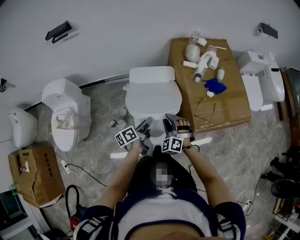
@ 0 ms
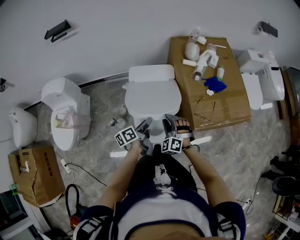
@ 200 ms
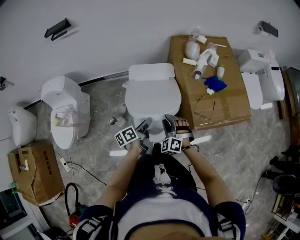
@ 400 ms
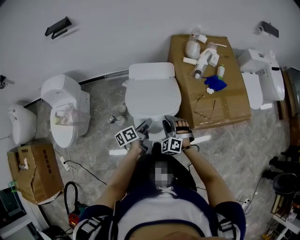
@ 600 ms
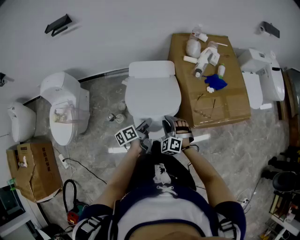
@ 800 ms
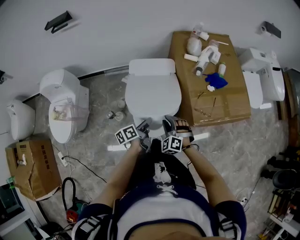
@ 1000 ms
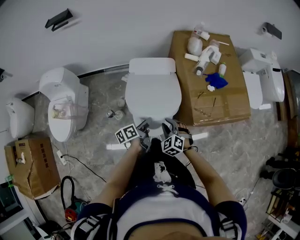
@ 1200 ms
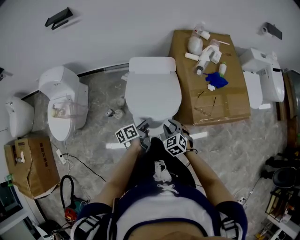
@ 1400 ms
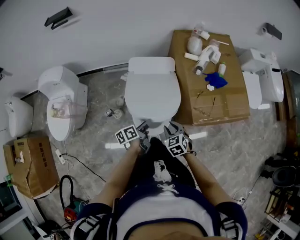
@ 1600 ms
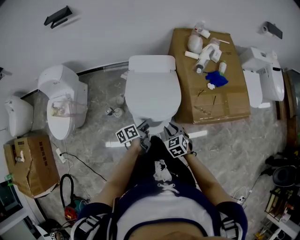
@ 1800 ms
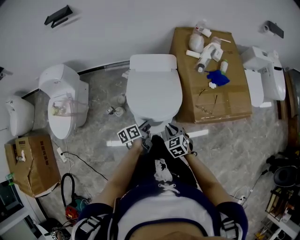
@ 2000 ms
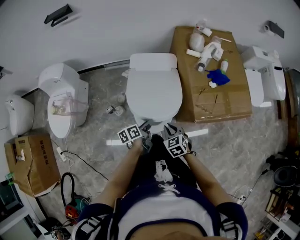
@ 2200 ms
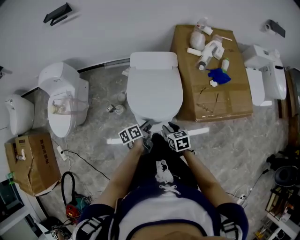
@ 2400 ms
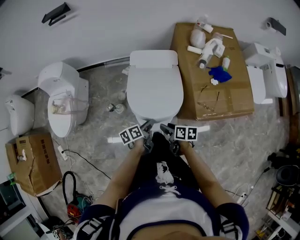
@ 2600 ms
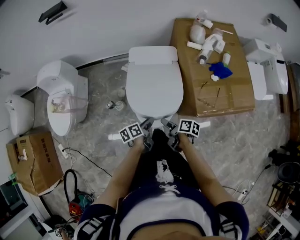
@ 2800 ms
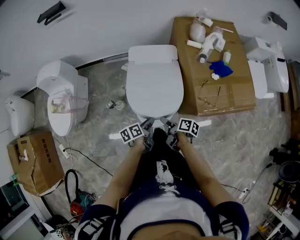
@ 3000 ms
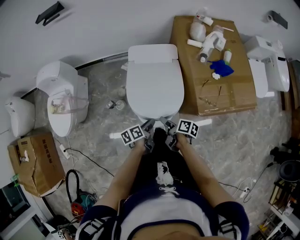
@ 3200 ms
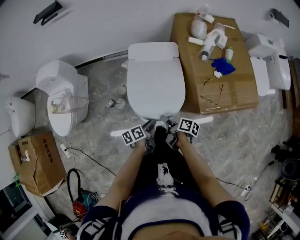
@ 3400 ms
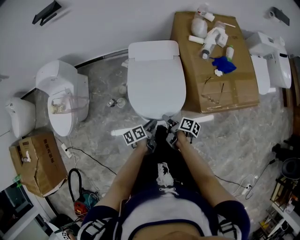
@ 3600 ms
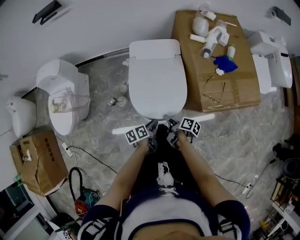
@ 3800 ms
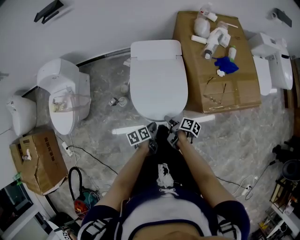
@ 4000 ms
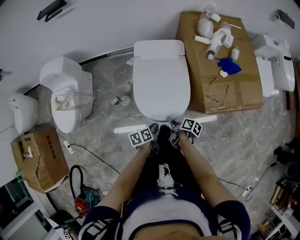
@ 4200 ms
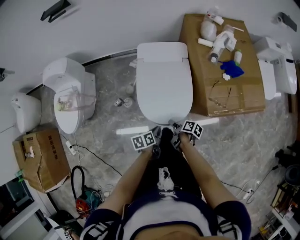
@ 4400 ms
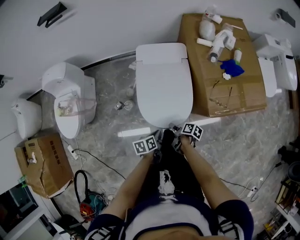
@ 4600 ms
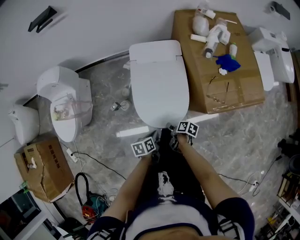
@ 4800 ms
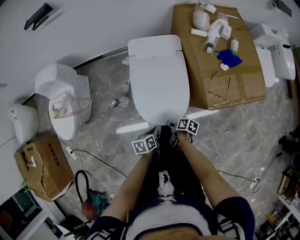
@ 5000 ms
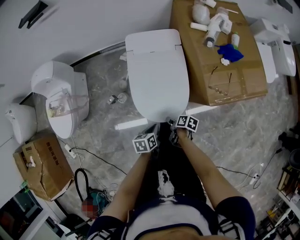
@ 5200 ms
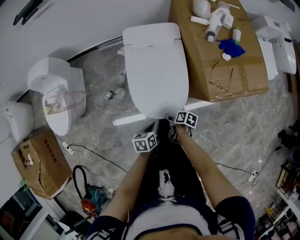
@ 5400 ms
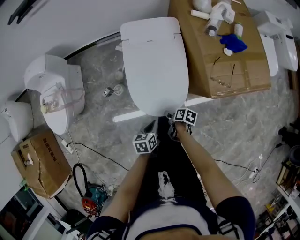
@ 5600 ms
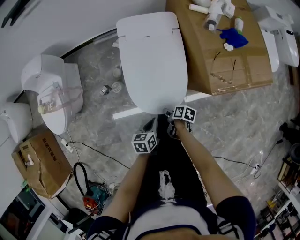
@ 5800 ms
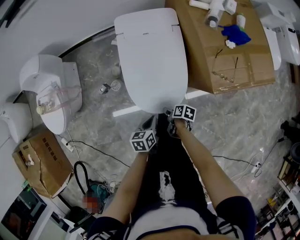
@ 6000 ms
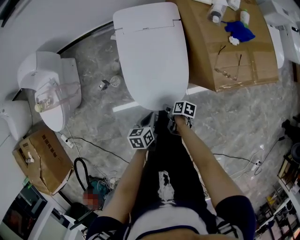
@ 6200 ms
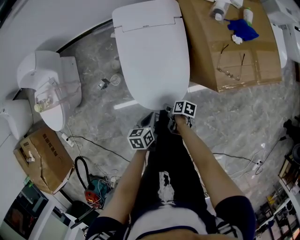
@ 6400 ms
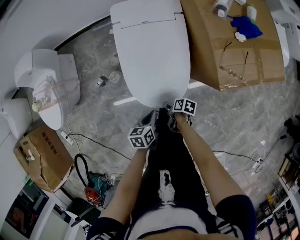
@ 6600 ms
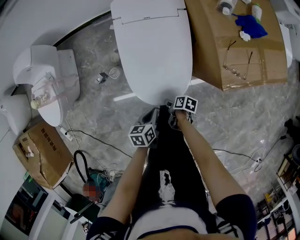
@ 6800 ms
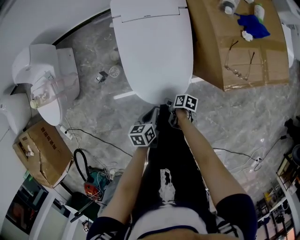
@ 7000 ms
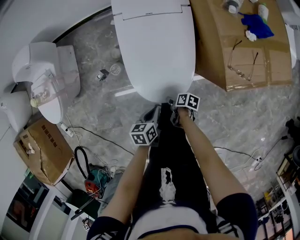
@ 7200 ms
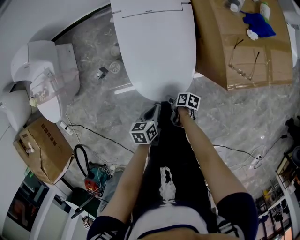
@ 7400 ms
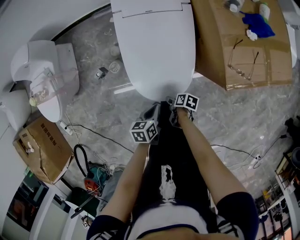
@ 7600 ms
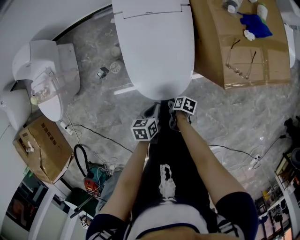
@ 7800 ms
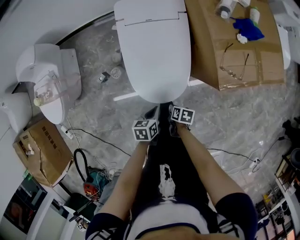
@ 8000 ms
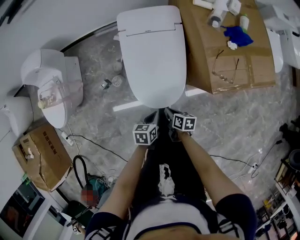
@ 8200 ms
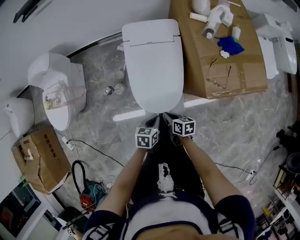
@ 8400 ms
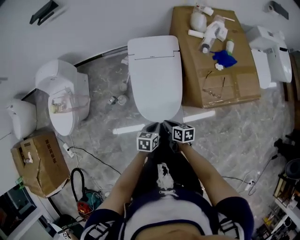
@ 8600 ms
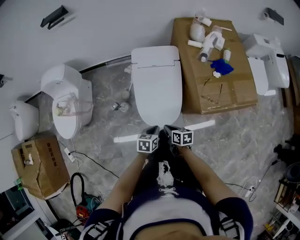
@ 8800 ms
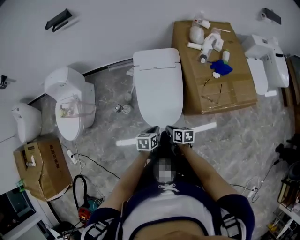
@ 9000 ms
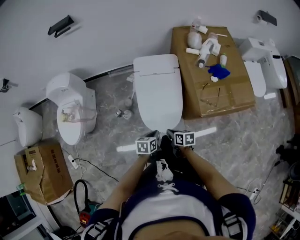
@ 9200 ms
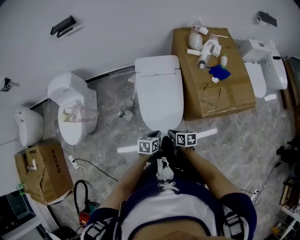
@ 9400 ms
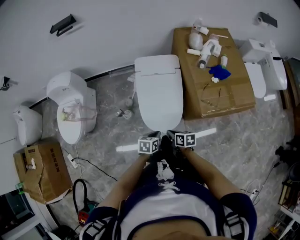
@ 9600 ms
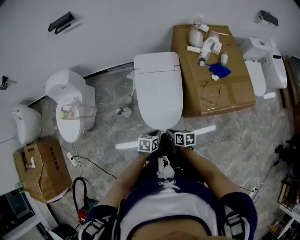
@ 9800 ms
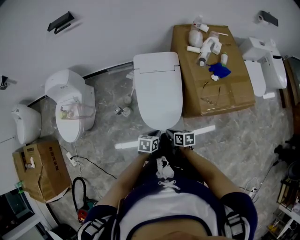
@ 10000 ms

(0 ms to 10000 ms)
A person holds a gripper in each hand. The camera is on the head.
0 ms - 1400 ms: The right gripper shifts some 5 cm backward, and swivels some 30 degrees, while the left gripper travels downward and backward by about 10 cm.
1400 ms - 2800 ms: The right gripper changes place by some 5 cm, twists about 90 degrees clockwise, seen from behind, and opens. Meanwhile the left gripper ends up approximately 5 cm from where it was.
2800 ms - 4200 ms: The right gripper heads downward, covering approximately 5 cm; the left gripper shifts by about 5 cm, and closes.
4200 ms - 5800 ms: The left gripper is displaced downward by some 5 cm, and rotates roughly 20 degrees; the right gripper travels downward by approximately 15 cm.
5800 ms - 7200 ms: The left gripper is displaced downward by some 5 cm; the right gripper travels downward by some 10 cm.
7200 ms - 8600 ms: The right gripper heads upward, covering some 25 cm, rotates some 40 degrees, and closes. The left gripper travels upward by some 15 cm.
8600 ms - 10000 ms: The grippers stay close to where they were, moving slightly.

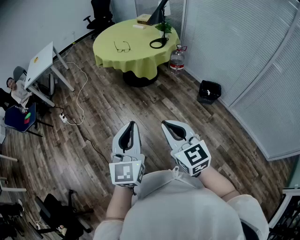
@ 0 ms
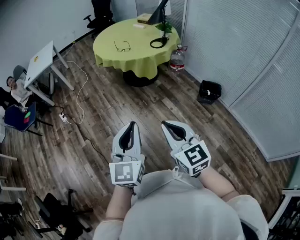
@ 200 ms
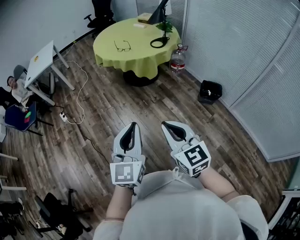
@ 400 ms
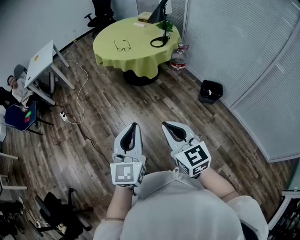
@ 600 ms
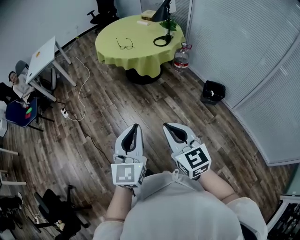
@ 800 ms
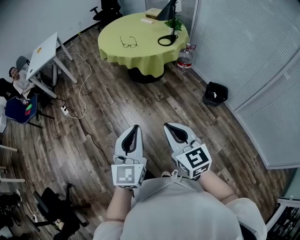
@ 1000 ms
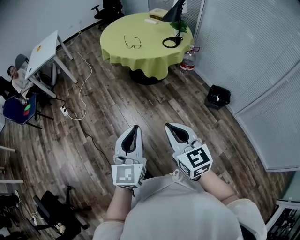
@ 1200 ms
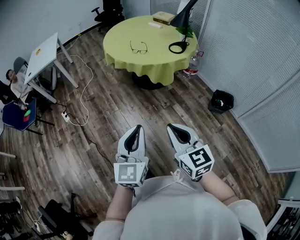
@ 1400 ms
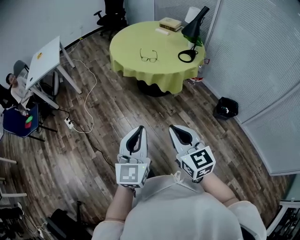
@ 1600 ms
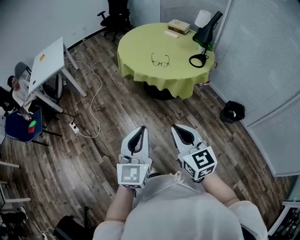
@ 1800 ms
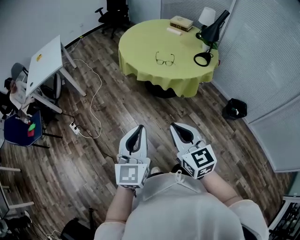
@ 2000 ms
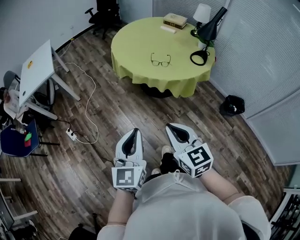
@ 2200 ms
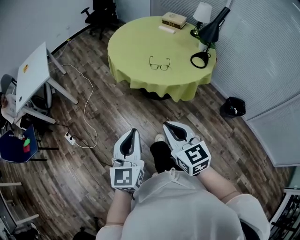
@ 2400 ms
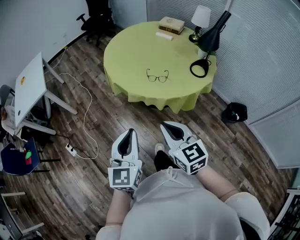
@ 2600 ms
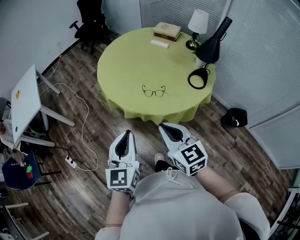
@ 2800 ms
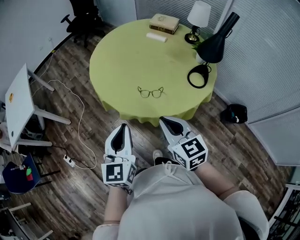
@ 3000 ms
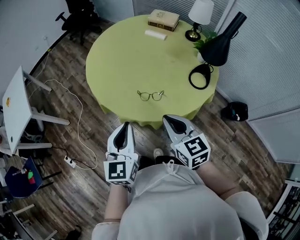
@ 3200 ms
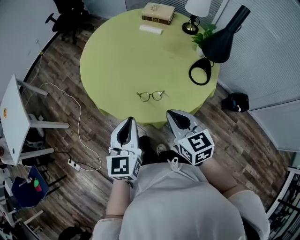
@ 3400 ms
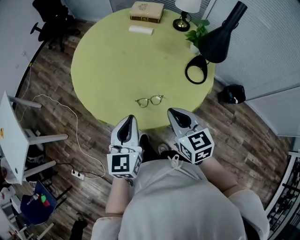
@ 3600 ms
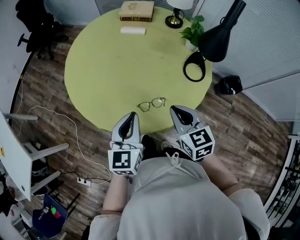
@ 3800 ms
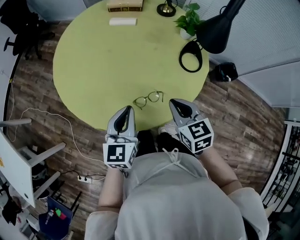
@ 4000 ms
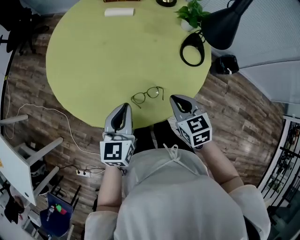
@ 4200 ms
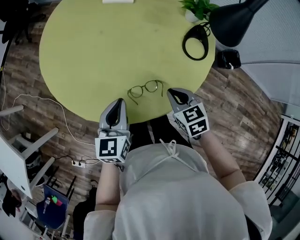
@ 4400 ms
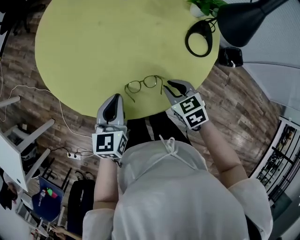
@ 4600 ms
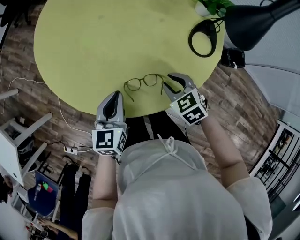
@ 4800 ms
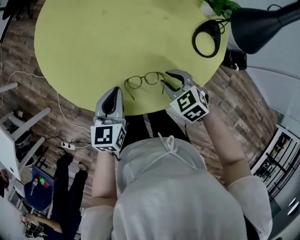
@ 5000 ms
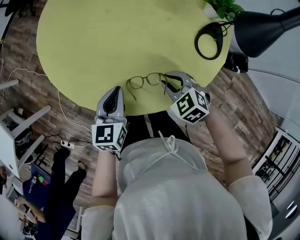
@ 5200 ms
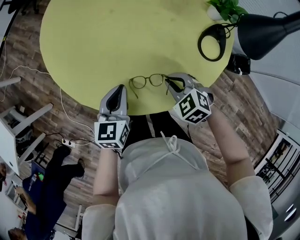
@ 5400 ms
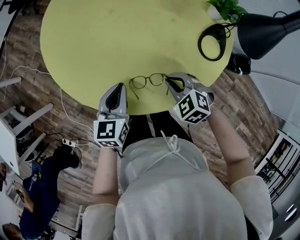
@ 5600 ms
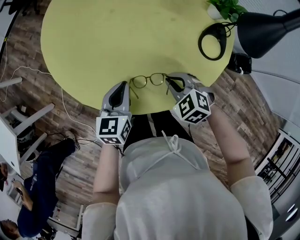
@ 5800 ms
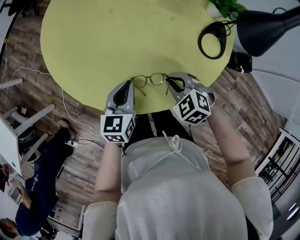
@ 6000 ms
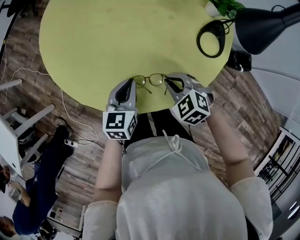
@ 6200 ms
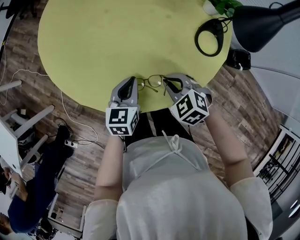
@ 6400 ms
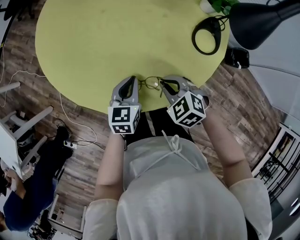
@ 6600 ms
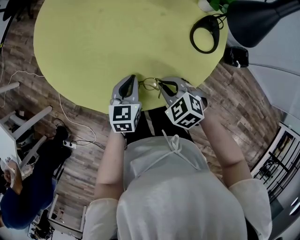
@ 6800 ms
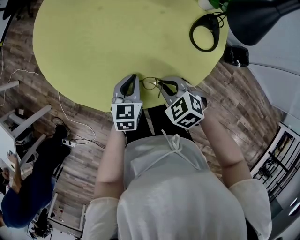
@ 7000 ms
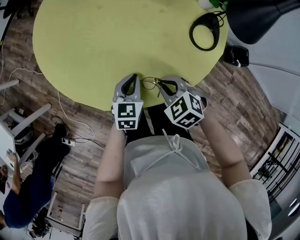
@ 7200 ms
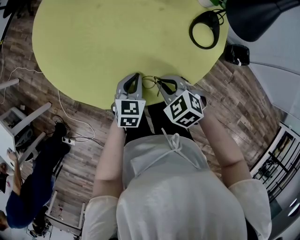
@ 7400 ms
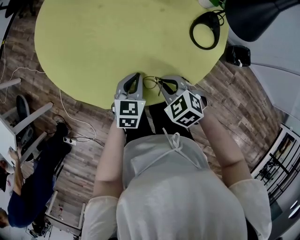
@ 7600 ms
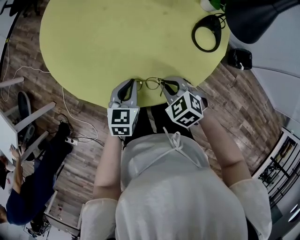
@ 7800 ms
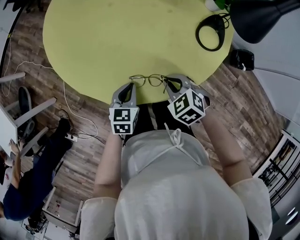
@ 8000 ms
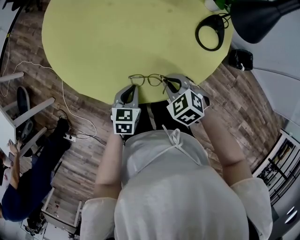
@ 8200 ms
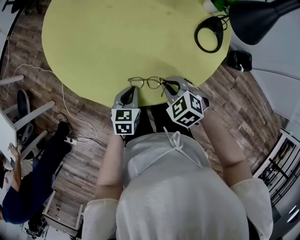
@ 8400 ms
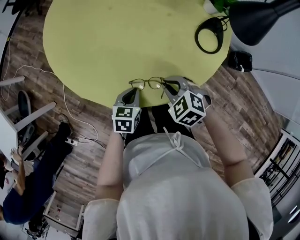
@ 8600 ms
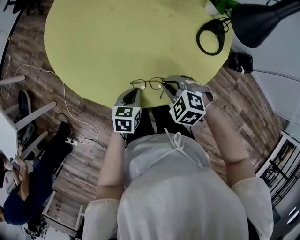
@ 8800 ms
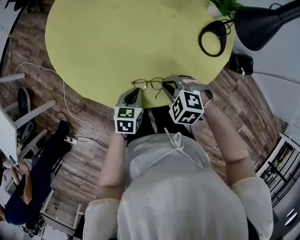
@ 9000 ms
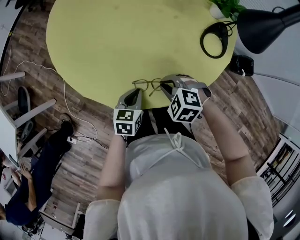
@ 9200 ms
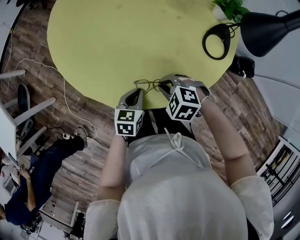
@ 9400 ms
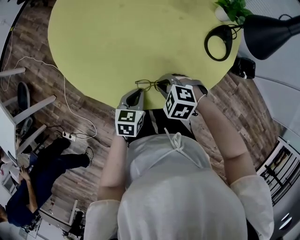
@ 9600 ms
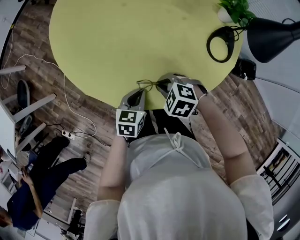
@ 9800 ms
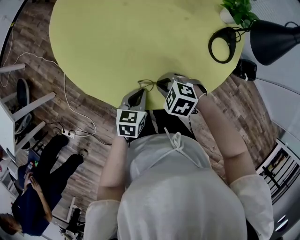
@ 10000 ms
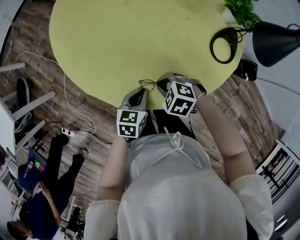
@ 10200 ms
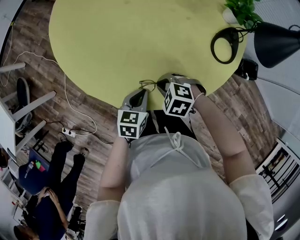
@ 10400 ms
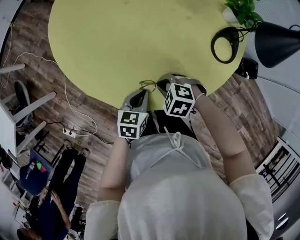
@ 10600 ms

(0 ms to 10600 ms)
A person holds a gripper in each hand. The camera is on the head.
0 ms - 1600 ms: The grippers both shift forward and to the left by some 30 cm.
1600 ms - 3000 ms: Both grippers are carried forward, some 60 cm.
3000 ms - 4600 ms: The right gripper ends up about 35 cm from where it was, and tilts its fingers about 40 degrees downward, while the left gripper moves some 35 cm, and turns by about 30 degrees.
4600 ms - 6000 ms: The left gripper changes place by some 5 cm, while the right gripper rotates approximately 40 degrees.
6000 ms - 7600 ms: The left gripper travels to the right by some 5 cm.
7600 ms - 9000 ms: The right gripper rotates roughly 20 degrees. Meanwhile the left gripper travels to the left by some 5 cm.
9000 ms - 10600 ms: The right gripper heads downward, covering about 5 cm.

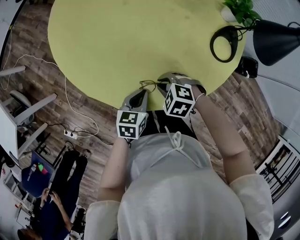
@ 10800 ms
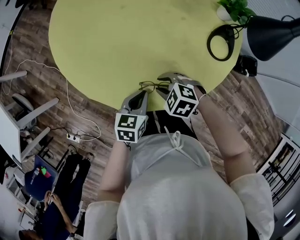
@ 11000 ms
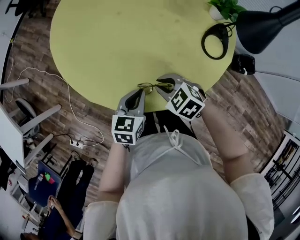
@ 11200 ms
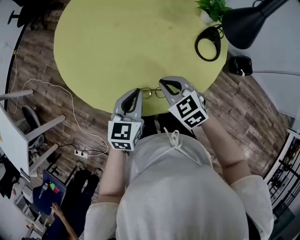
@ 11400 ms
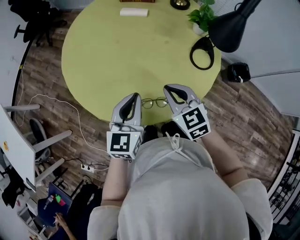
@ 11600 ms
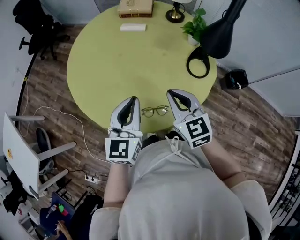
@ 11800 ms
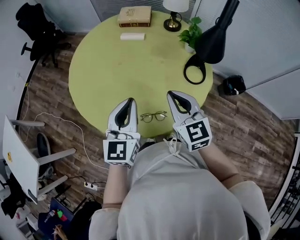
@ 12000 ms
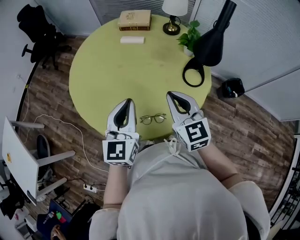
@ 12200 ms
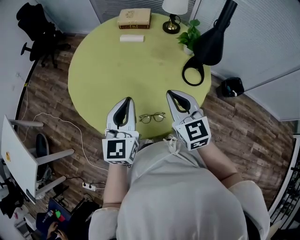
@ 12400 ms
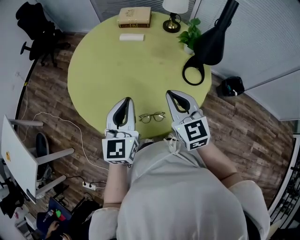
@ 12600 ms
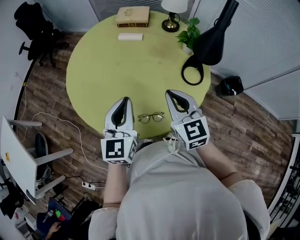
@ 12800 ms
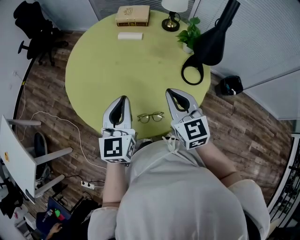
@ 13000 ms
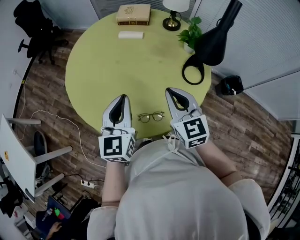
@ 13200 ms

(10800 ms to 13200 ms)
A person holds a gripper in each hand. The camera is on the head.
10800 ms - 12000 ms: Both grippers travel together upward, roughly 30 cm. The left gripper tips its fingers upward by about 40 degrees. The right gripper angles its fingers upward, by about 50 degrees.
12000 ms - 13200 ms: The grippers move only a little.
